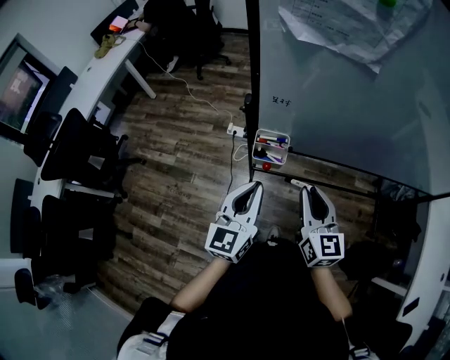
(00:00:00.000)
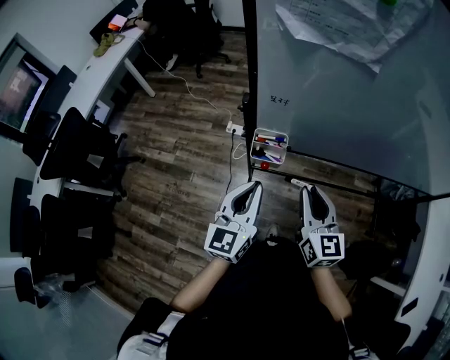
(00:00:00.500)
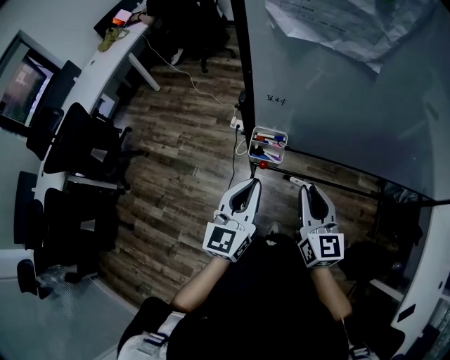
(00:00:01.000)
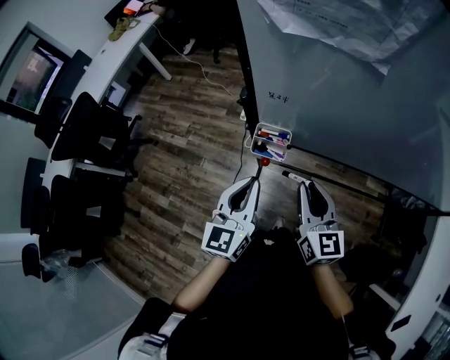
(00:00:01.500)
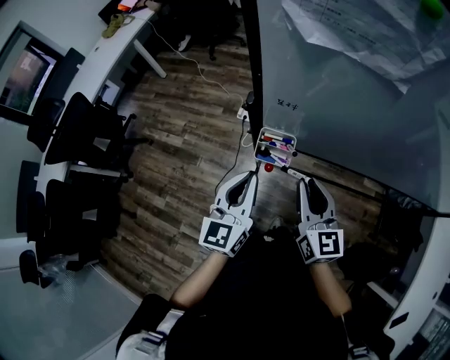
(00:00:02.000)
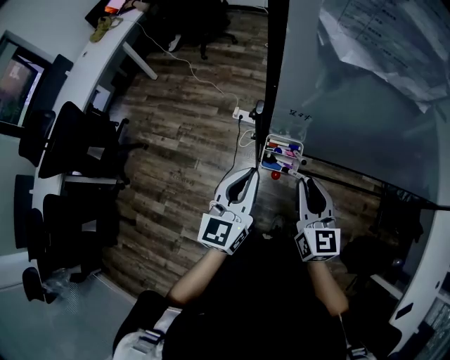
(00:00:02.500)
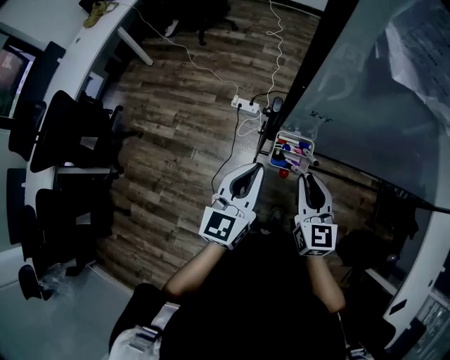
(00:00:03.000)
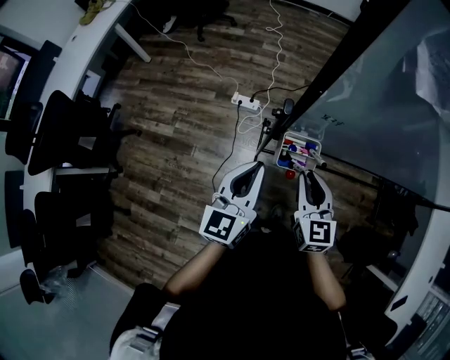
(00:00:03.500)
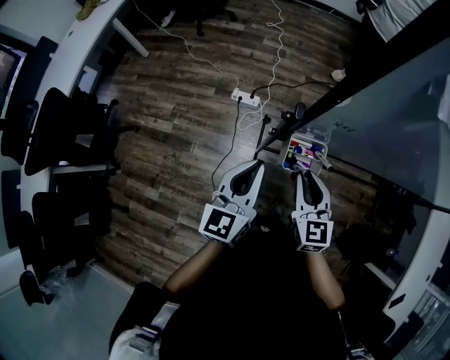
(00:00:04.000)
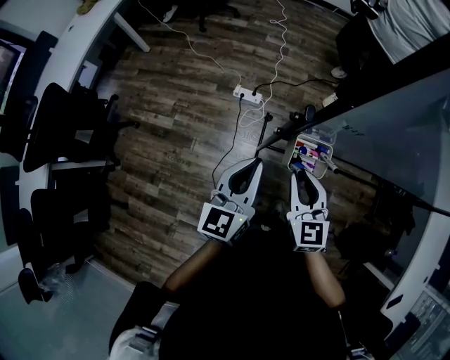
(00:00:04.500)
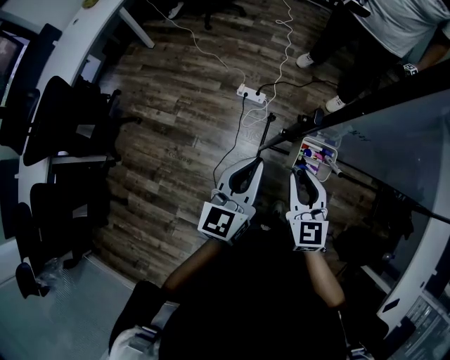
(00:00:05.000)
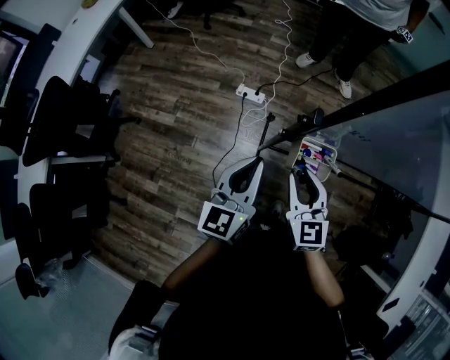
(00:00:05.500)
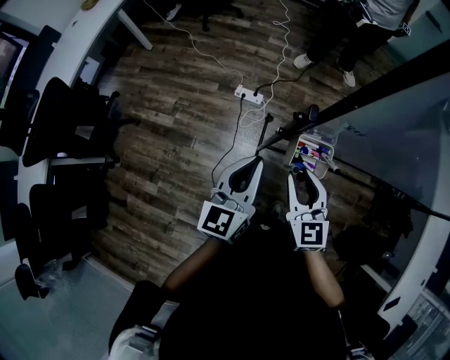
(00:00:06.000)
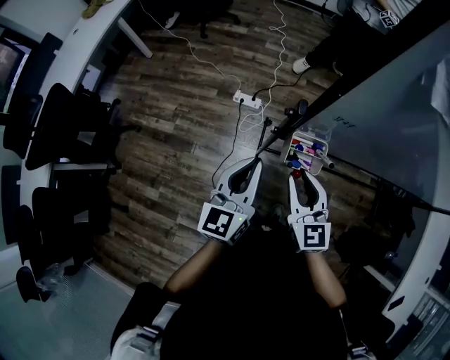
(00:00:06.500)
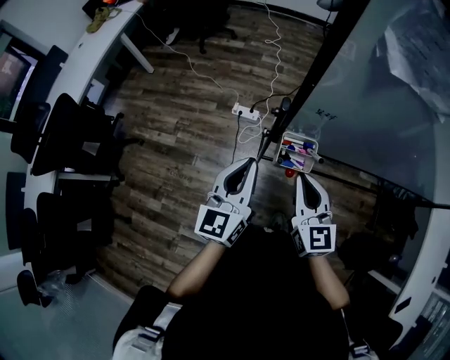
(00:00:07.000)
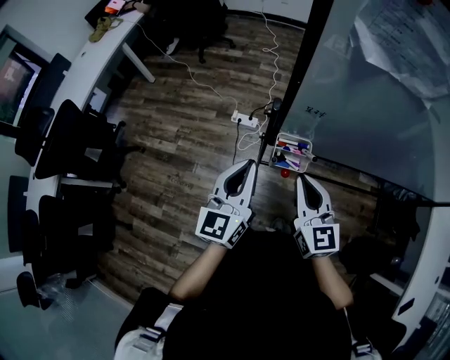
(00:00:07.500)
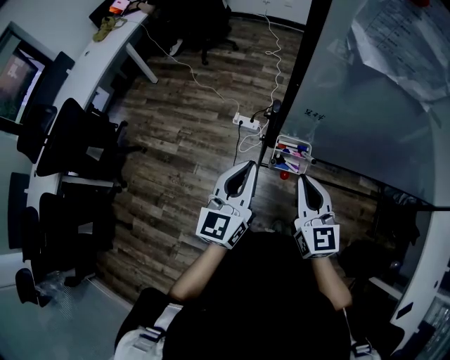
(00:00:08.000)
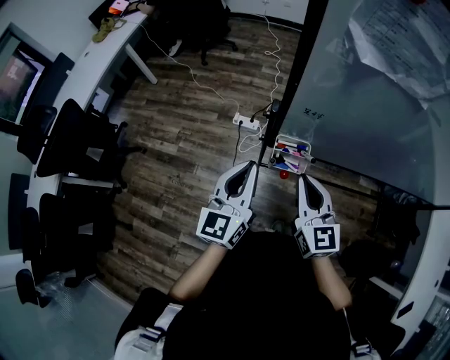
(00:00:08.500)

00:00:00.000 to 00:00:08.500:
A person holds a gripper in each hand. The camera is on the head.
00:00:00.000 to 00:00:02.000: The right gripper shifts some 5 cm forward.
00:00:02.000 to 00:00:04.000: The left gripper moves to the left and forward, roughly 10 cm; the right gripper goes some 10 cm to the left and downward.
00:00:04.000 to 00:00:06.500: The grippers make only small movements.
00:00:06.500 to 00:00:08.500: The right gripper is displaced to the right by approximately 5 cm, and closes, while the left gripper changes place by roughly 5 cm.

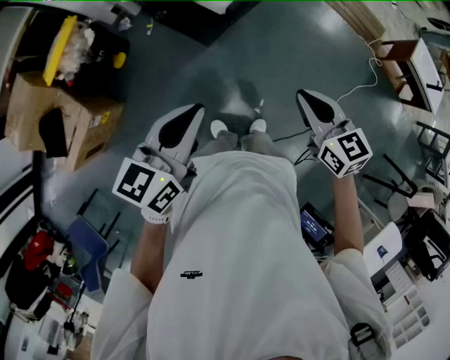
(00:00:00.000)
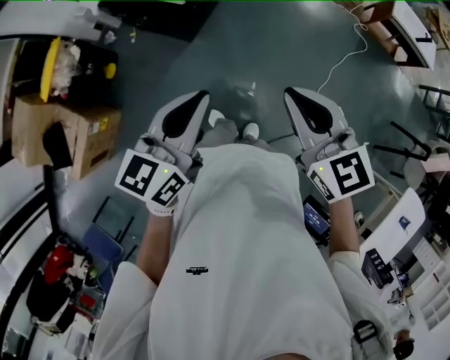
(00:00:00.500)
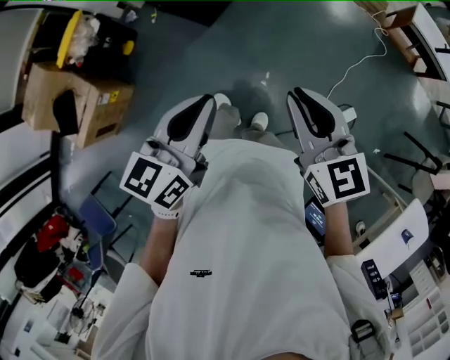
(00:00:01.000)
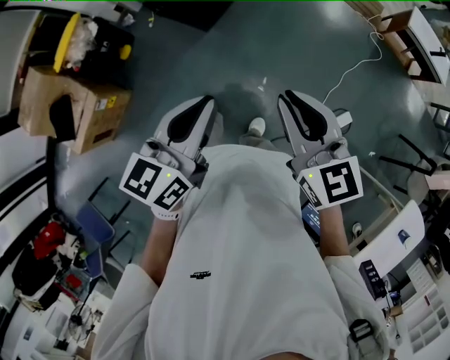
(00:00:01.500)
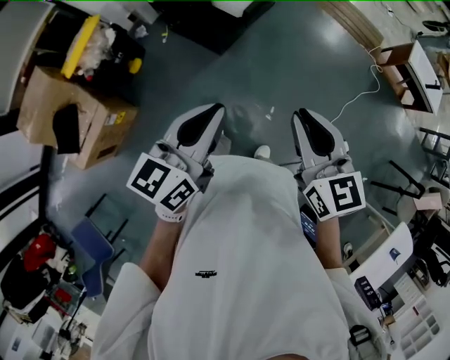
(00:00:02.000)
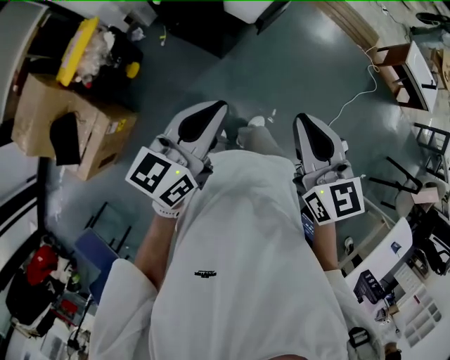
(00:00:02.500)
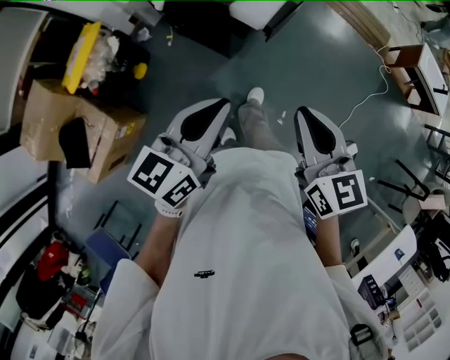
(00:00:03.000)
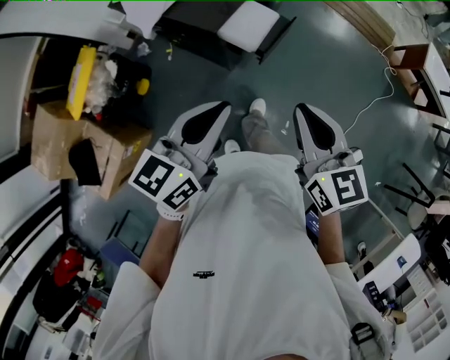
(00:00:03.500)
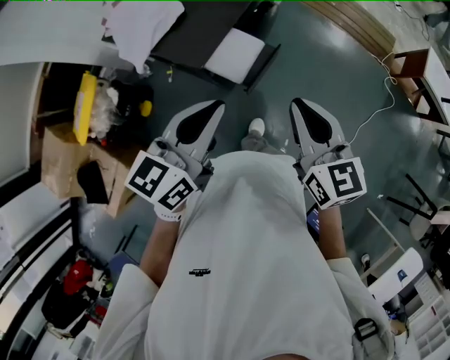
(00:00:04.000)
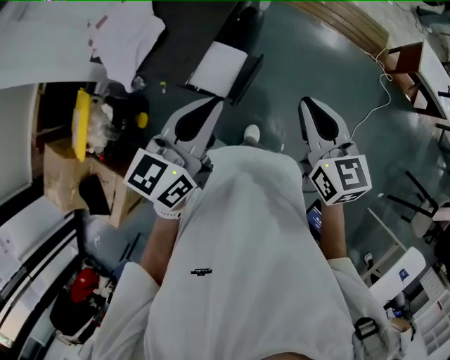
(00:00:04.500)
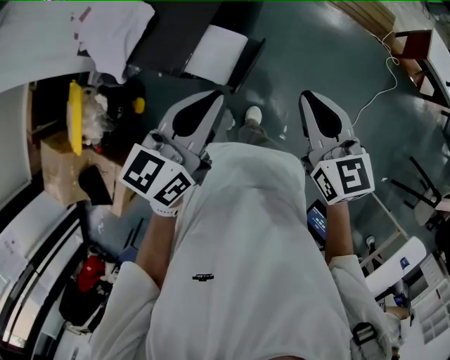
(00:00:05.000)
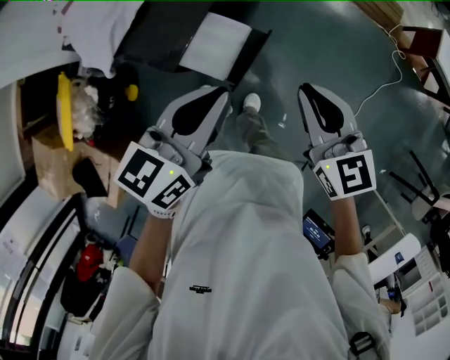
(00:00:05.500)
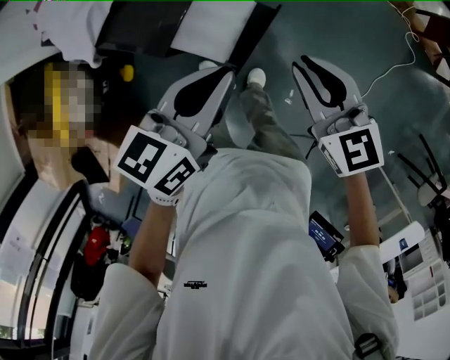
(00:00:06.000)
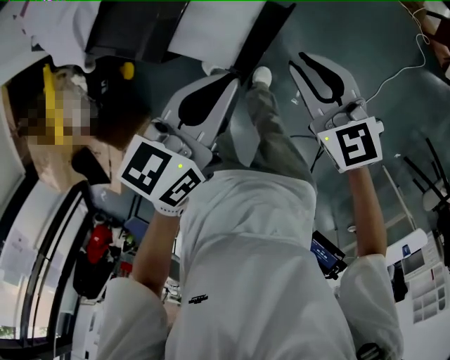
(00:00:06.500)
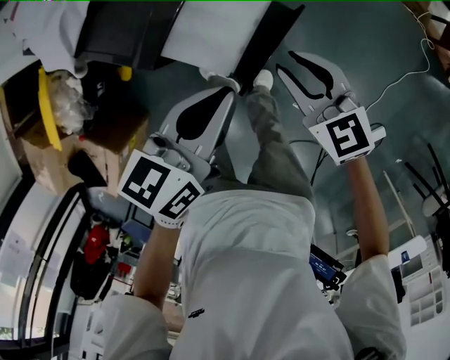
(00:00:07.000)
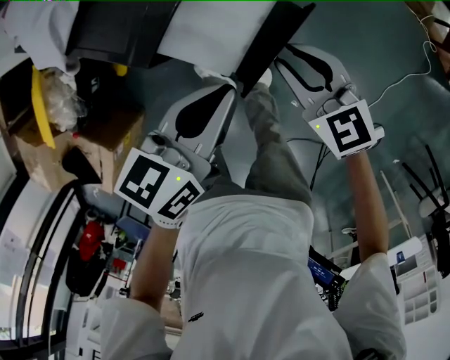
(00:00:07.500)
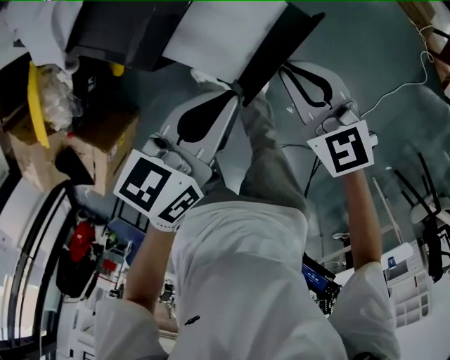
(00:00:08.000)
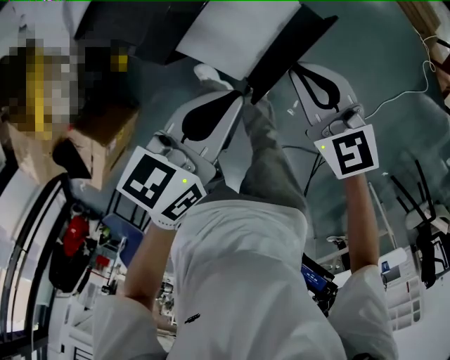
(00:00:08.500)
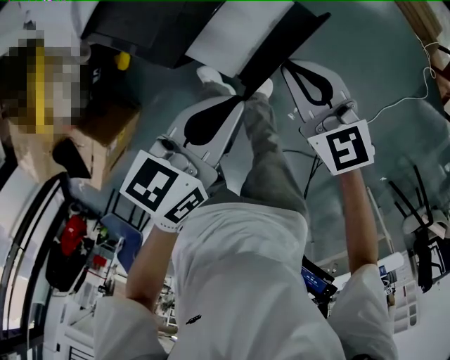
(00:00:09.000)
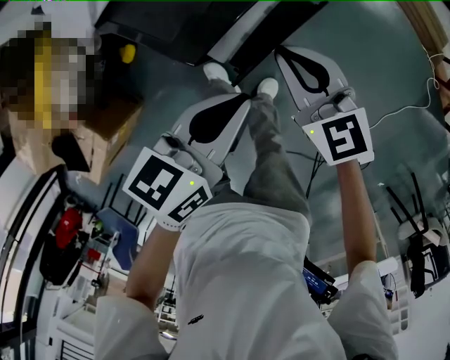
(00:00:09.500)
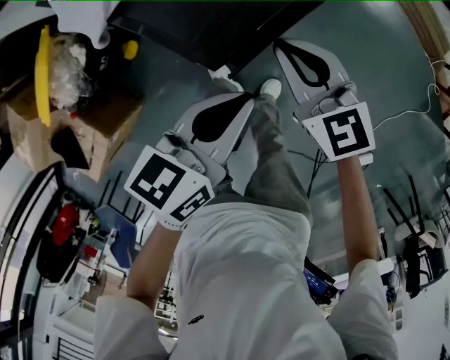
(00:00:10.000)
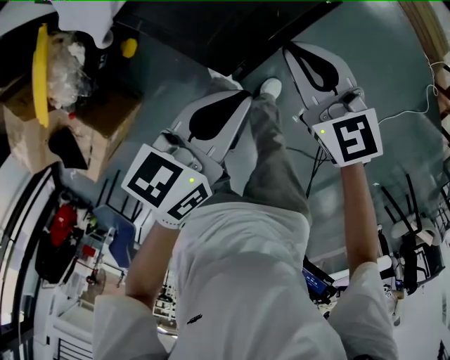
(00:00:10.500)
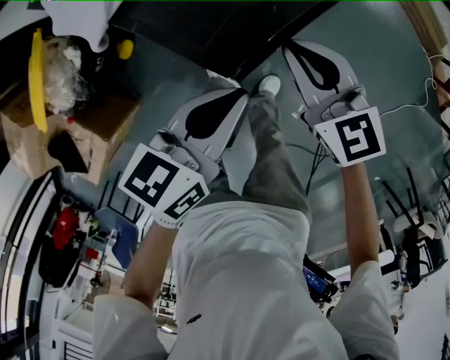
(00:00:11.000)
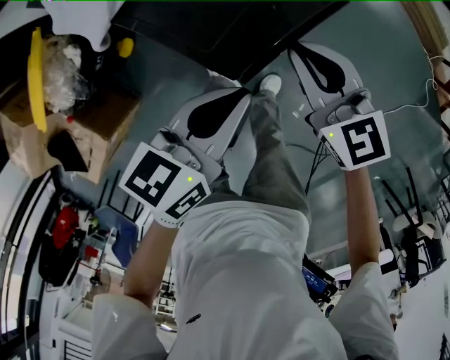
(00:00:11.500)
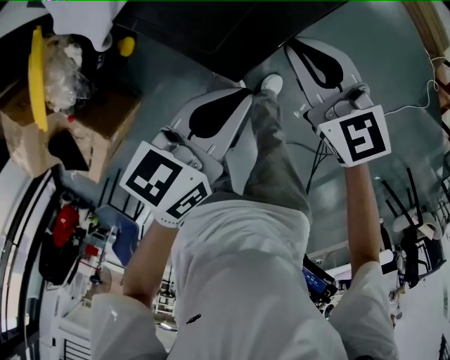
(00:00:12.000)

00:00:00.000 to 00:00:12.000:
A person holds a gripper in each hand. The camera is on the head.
00:00:00.000 to 00:00:02.000: The right gripper shifts about 15 cm backward, upward and to the left, while the left gripper is displaced backward by some 5 cm.
00:00:02.000 to 00:00:04.000: The two grippers go approximately 30 cm forward.
00:00:04.000 to 00:00:06.000: The grippers both shift downward and forward by some 15 cm.
00:00:06.000 to 00:00:08.000: The right gripper goes some 15 cm downward and to the left, while the left gripper travels downward by roughly 10 cm.
00:00:08.000 to 00:00:10.000: The right gripper moves to the left and forward, roughly 10 cm. The left gripper moves to the left, roughly 5 cm.
00:00:10.000 to 00:00:12.000: The grippers stay close to where they were, moving slightly.

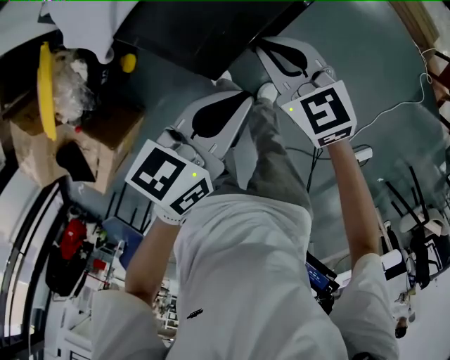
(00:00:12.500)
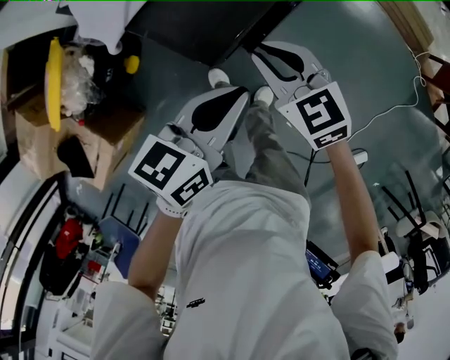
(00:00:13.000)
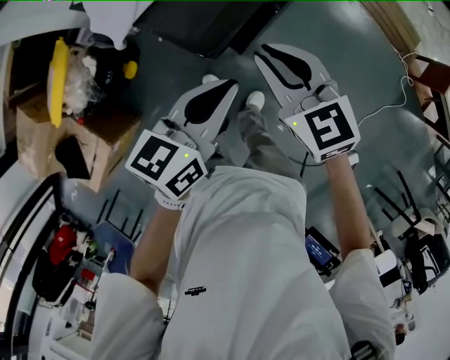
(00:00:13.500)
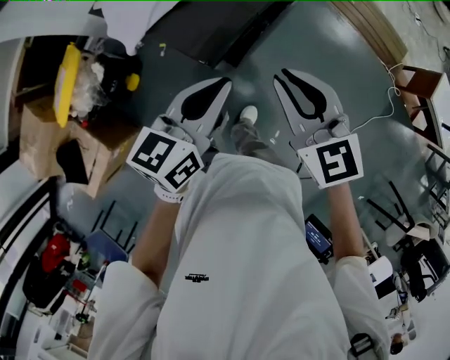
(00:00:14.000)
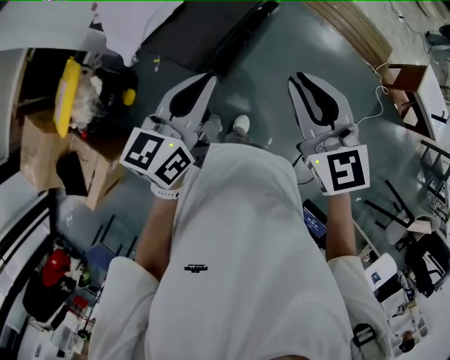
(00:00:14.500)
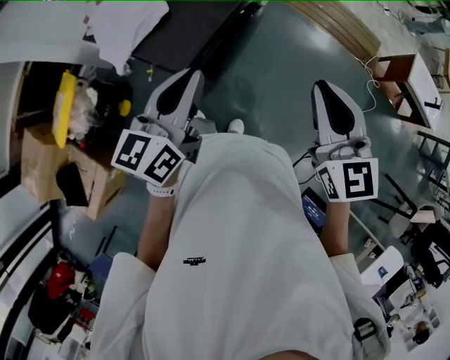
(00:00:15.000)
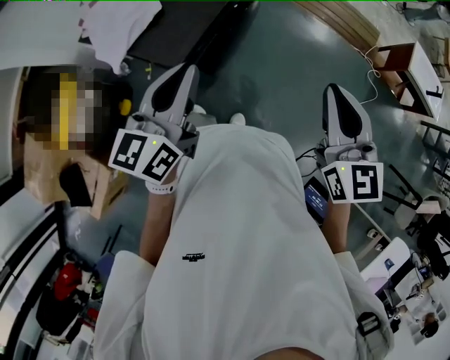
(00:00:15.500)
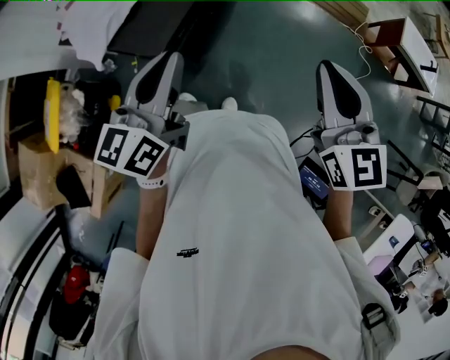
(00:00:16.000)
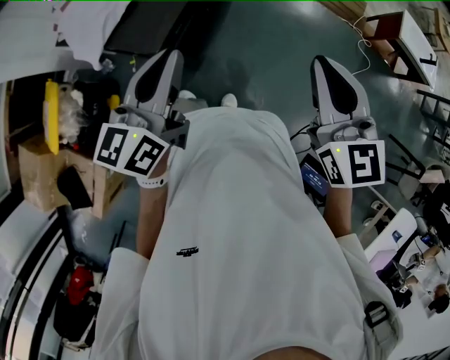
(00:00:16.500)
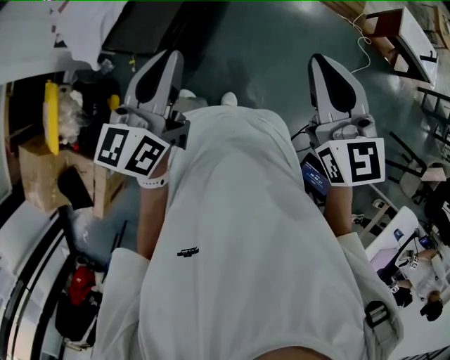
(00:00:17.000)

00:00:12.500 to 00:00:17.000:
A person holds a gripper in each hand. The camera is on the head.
00:00:12.500 to 00:00:14.500: The left gripper heads upward, covering some 20 cm, and changes its angle by about 20 degrees; the right gripper travels upward, to the right and backward by about 30 cm, and changes its angle by roughly 20 degrees.
00:00:14.500 to 00:00:17.000: The right gripper goes approximately 10 cm to the right and backward, and turns by about 20 degrees.

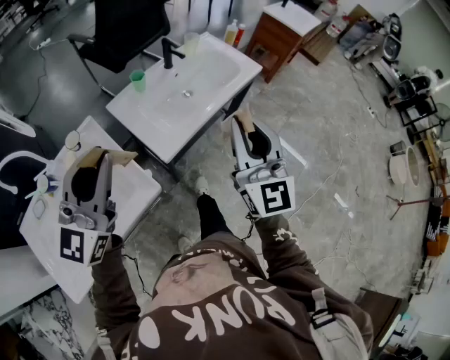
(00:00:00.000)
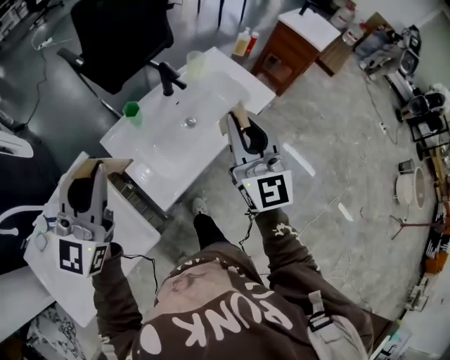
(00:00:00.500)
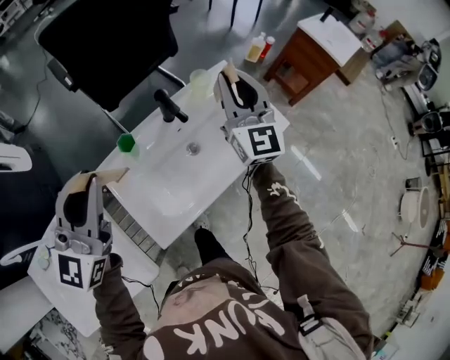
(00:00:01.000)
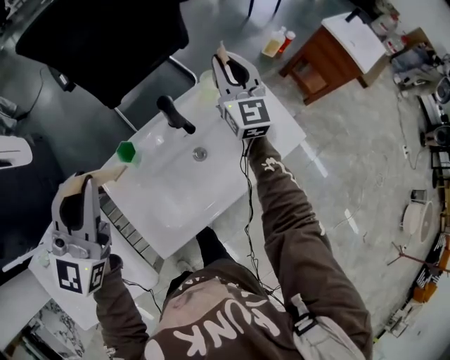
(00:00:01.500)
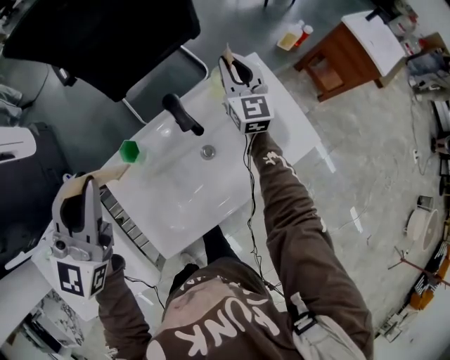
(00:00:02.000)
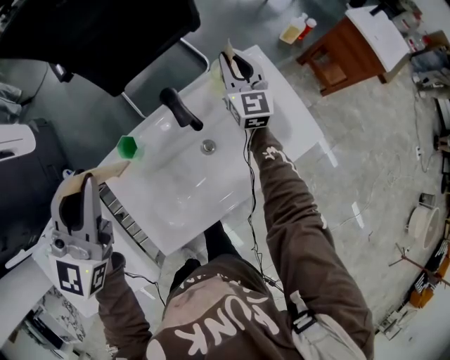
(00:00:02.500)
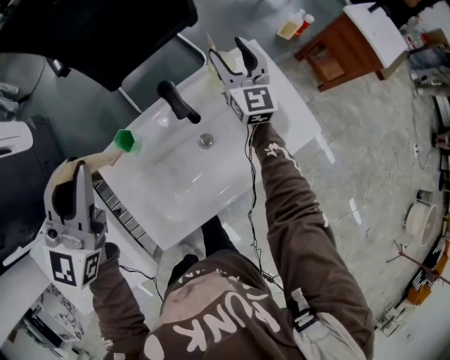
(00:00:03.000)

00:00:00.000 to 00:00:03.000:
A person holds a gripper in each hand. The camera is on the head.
00:00:00.000 to 00:00:01.500: The right gripper goes roughly 60 cm forward, while the left gripper travels forward by approximately 35 cm.
00:00:01.500 to 00:00:03.000: The right gripper is displaced downward by approximately 10 cm, and opens up.
